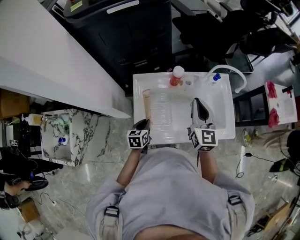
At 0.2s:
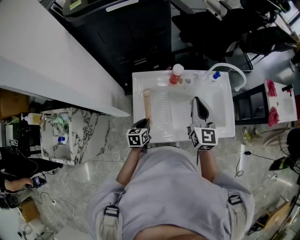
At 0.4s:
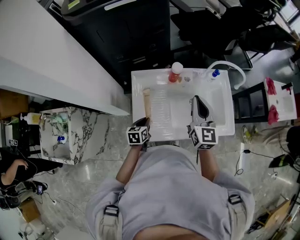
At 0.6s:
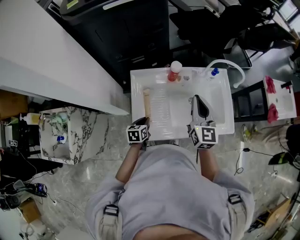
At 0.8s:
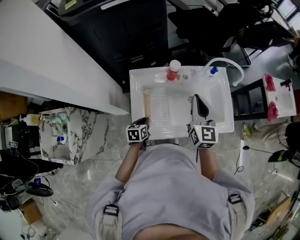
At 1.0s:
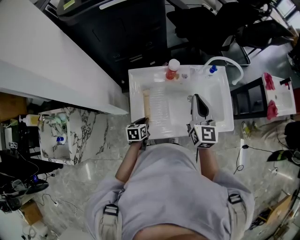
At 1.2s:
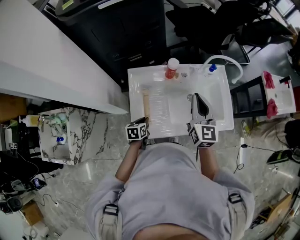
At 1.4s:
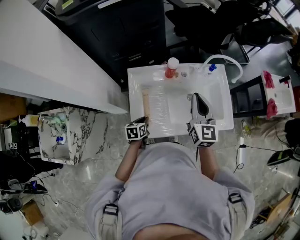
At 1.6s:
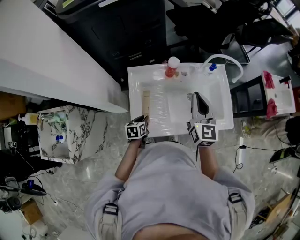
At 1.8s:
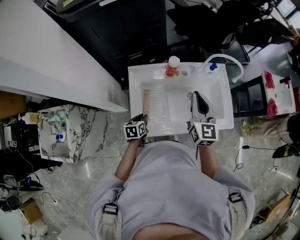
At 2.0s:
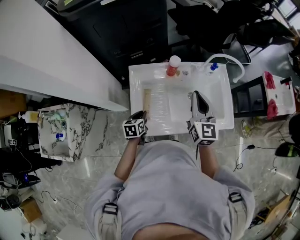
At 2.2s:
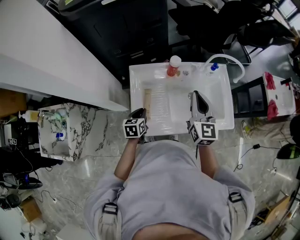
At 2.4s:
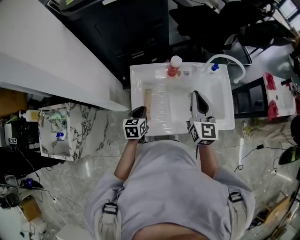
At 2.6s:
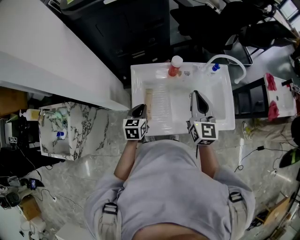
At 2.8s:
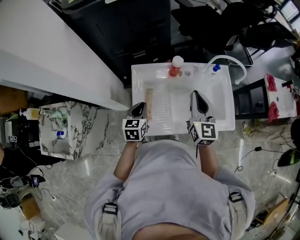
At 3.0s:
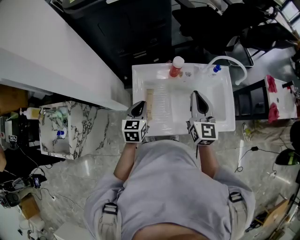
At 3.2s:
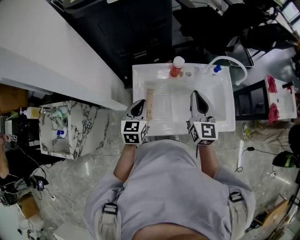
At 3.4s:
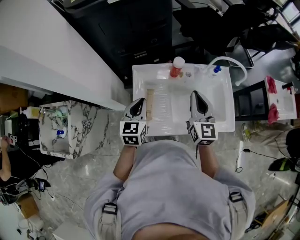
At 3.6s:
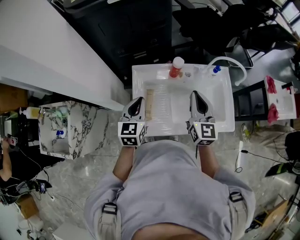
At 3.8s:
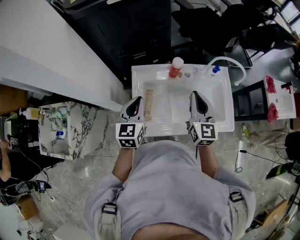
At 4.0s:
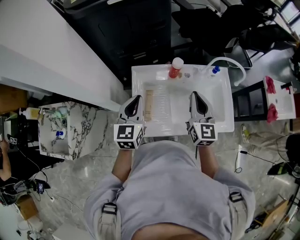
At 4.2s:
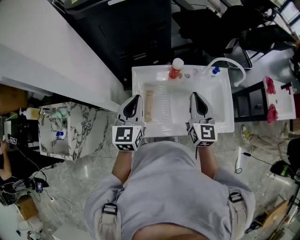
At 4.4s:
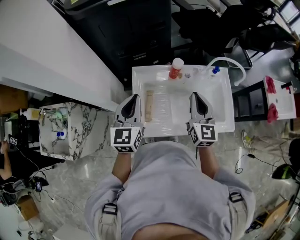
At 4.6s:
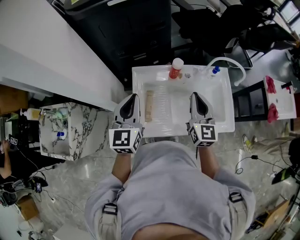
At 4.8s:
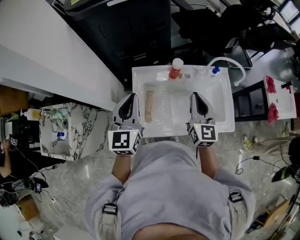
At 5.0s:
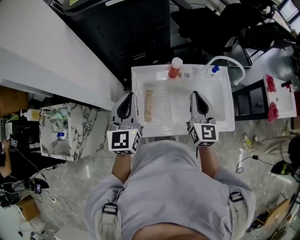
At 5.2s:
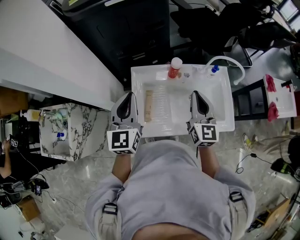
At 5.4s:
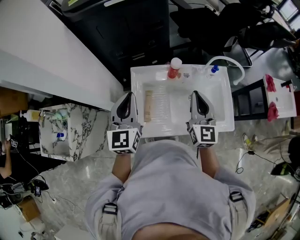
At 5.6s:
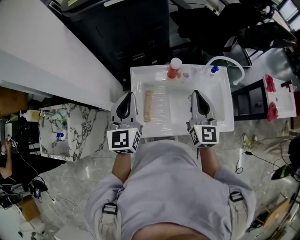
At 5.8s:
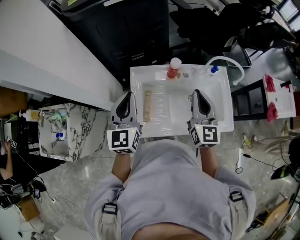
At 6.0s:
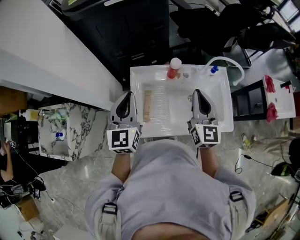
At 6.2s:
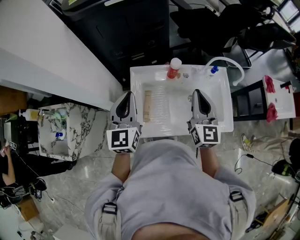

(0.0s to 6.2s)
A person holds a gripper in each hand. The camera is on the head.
0.0s - 1.6s: The left gripper shifts by roughly 5 cm.
1.6s - 3.2s: The left gripper is displaced upward by some 20 cm, and swivels about 30 degrees.
3.2s - 4.6s: The left gripper heads upward, covering roughly 15 cm.
4.6s - 6.2s: The grippers stay close to where they were, moving slightly.

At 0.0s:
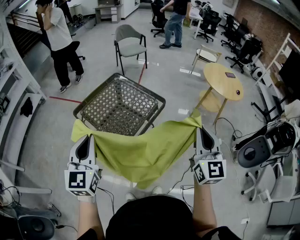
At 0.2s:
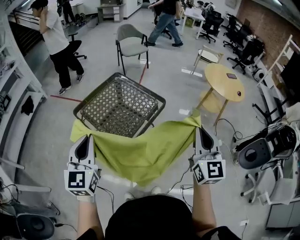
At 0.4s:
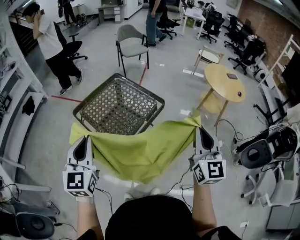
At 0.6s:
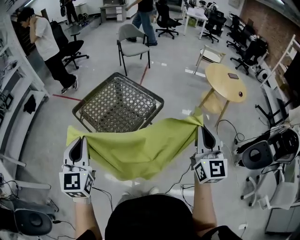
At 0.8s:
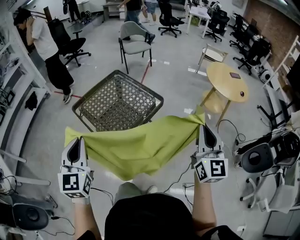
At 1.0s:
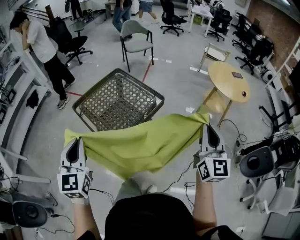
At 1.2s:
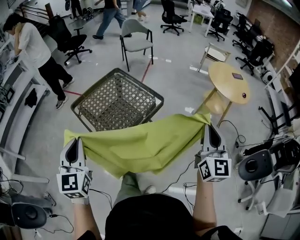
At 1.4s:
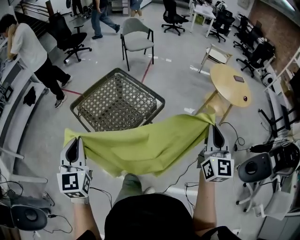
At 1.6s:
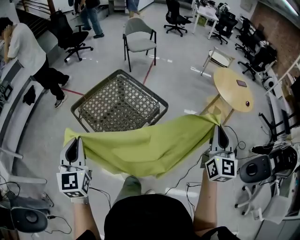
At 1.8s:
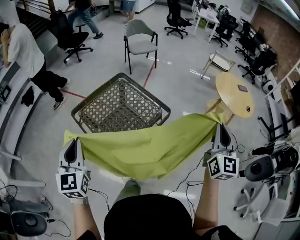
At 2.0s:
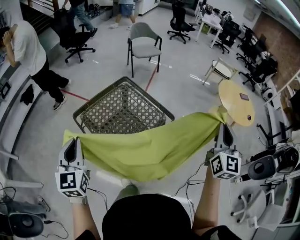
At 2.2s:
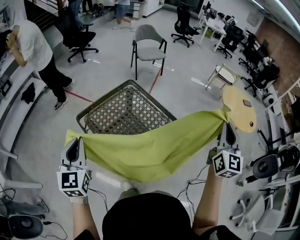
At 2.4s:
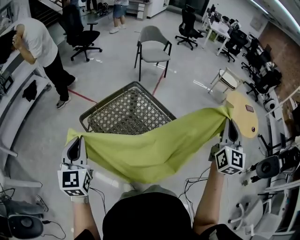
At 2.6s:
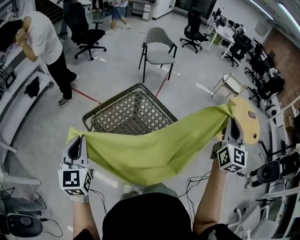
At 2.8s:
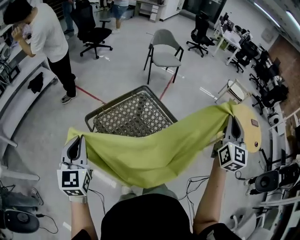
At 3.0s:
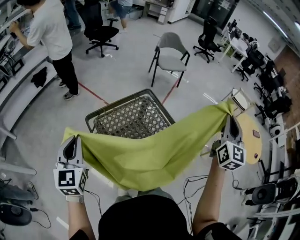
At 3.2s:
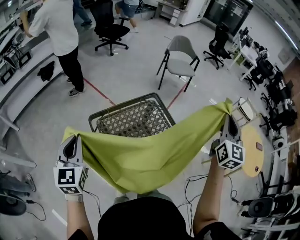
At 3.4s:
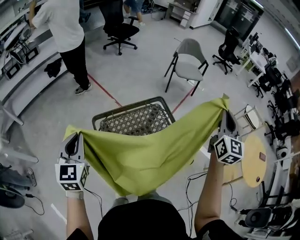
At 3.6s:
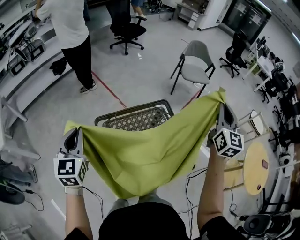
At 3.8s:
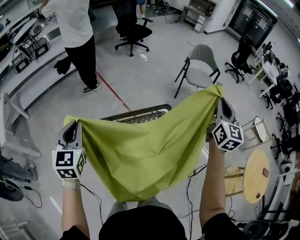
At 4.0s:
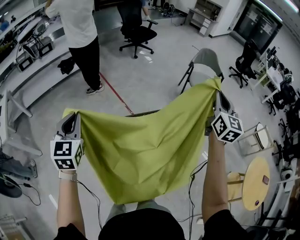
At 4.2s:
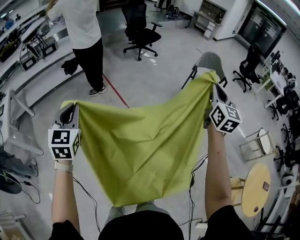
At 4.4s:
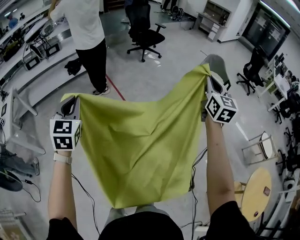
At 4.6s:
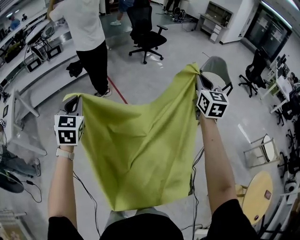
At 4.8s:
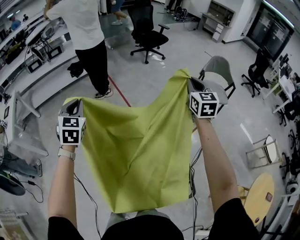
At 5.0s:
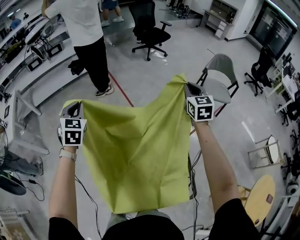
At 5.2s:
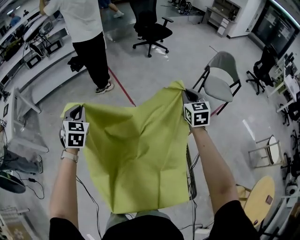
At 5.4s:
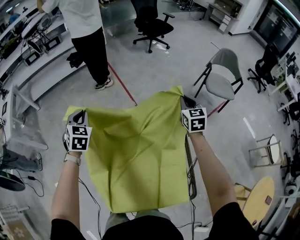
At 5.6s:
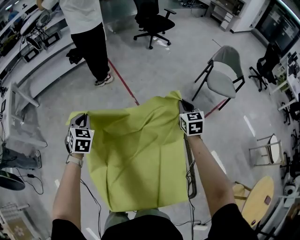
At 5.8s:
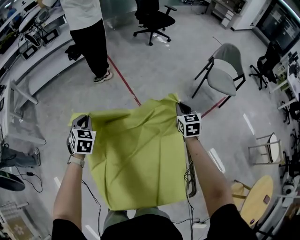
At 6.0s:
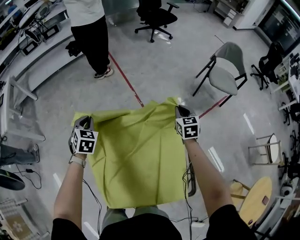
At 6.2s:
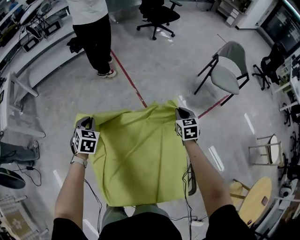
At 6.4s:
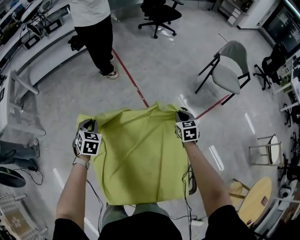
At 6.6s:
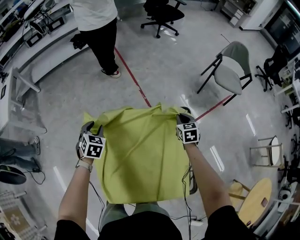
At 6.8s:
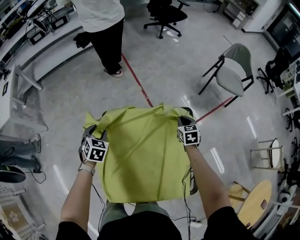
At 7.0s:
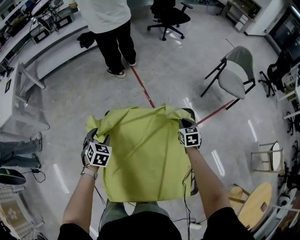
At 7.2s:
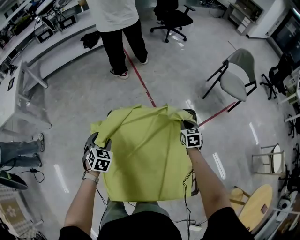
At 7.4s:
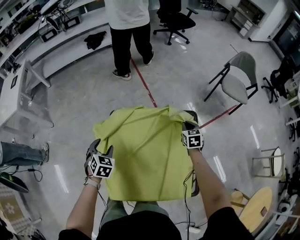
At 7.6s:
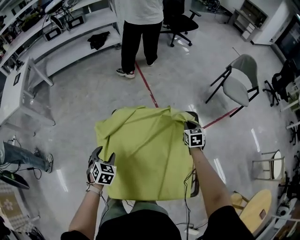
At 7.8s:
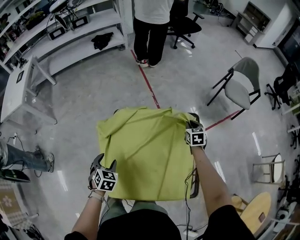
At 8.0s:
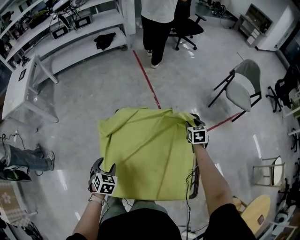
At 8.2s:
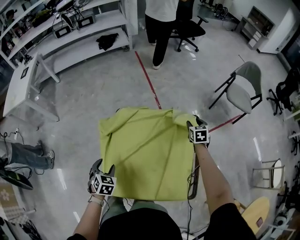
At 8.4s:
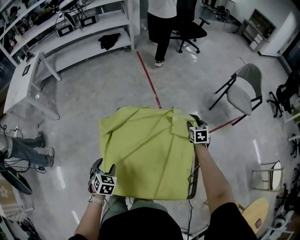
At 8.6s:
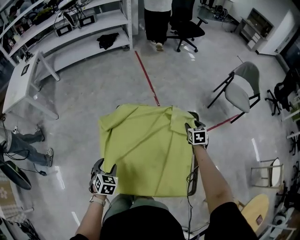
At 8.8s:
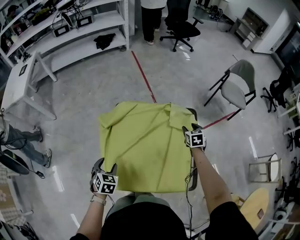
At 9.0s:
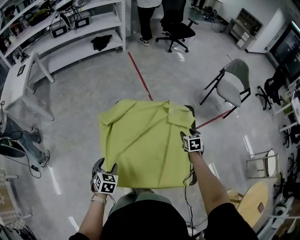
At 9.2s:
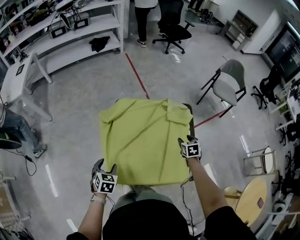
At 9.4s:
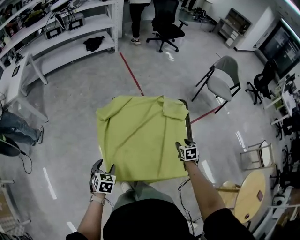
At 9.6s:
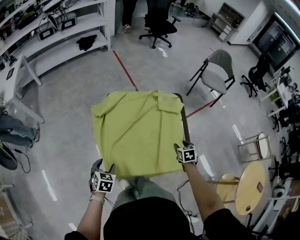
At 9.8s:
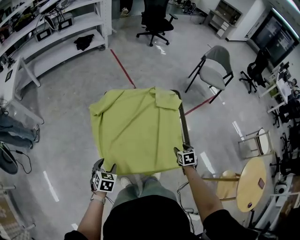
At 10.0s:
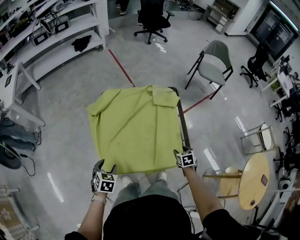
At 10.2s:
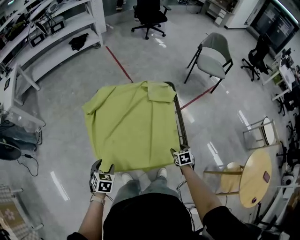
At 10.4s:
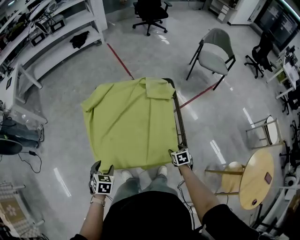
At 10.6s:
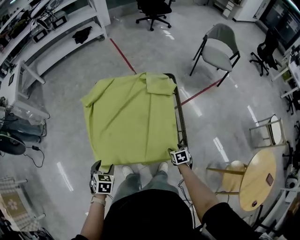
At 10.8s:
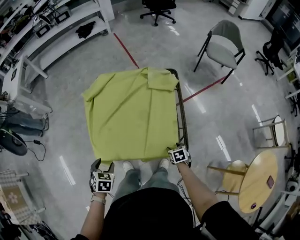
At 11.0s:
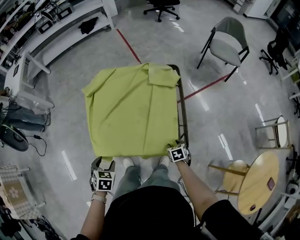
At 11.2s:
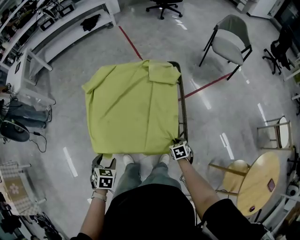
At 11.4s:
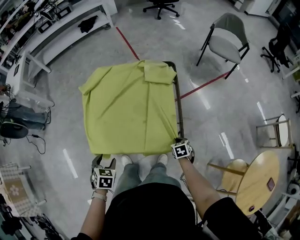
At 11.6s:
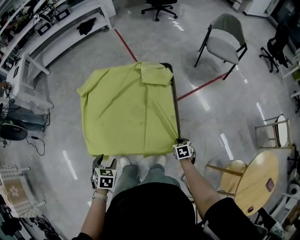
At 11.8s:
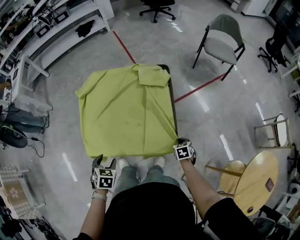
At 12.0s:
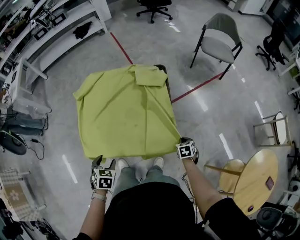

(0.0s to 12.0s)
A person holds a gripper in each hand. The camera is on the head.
0.0s - 1.6s: The right gripper goes approximately 15 cm to the right and forward. Meanwhile the left gripper shifts by approximately 5 cm.
1.6s - 3.0s: The right gripper heads forward and to the left, covering about 35 cm. Meanwhile the left gripper shifts some 25 cm to the left and forward.
3.0s - 4.4s: The right gripper changes place by about 50 cm, and changes its angle by roughly 30 degrees, while the left gripper ends up approximately 25 cm from where it was, and turns by some 20 degrees.
4.4s - 6.0s: The grippers both shift downward by roughly 30 cm. The right gripper points its fingers roughly 40 degrees further downward. Meanwhile the left gripper rotates approximately 30 degrees.
6.0s - 7.6s: The right gripper moves downward and backward, about 10 cm. Meanwhile the left gripper travels backward by roughly 25 cm, and opens.
7.6s - 9.0s: The two grippers go about 15 cm backward. The right gripper opens its fingers.
9.0s - 10.4s: The left gripper heads backward and to the right, covering roughly 15 cm, while the right gripper goes some 30 cm backward and downward.
10.4s - 12.0s: The left gripper travels to the right and backward by about 15 cm. Meanwhile the right gripper shifts roughly 15 cm to the right, and closes its fingers.

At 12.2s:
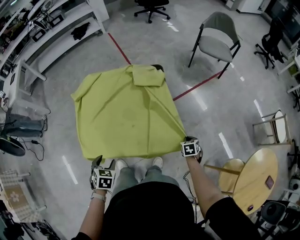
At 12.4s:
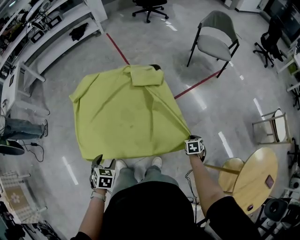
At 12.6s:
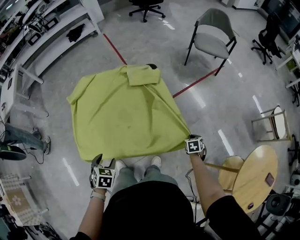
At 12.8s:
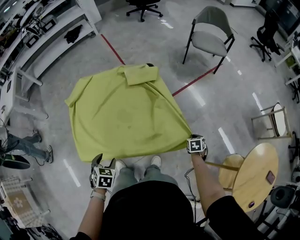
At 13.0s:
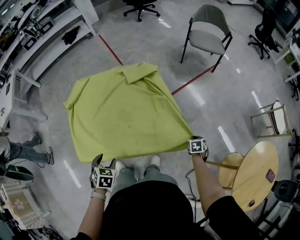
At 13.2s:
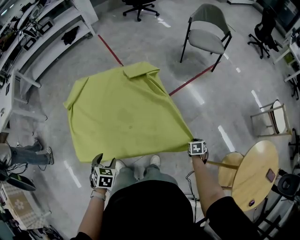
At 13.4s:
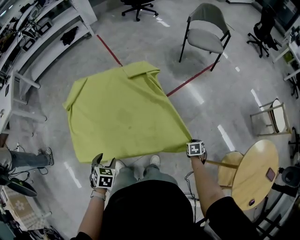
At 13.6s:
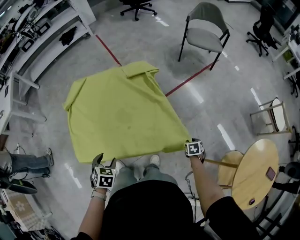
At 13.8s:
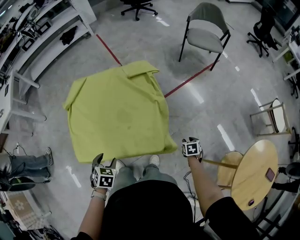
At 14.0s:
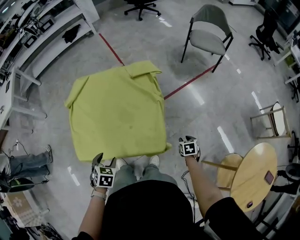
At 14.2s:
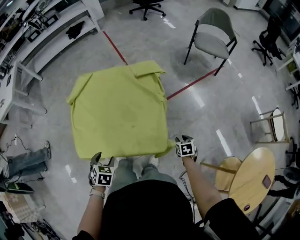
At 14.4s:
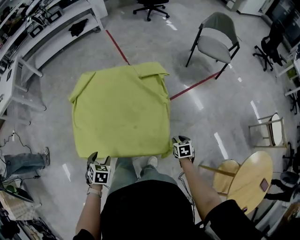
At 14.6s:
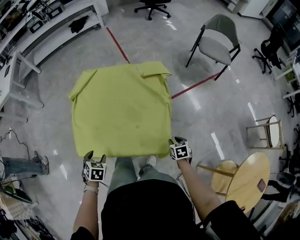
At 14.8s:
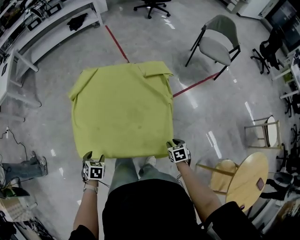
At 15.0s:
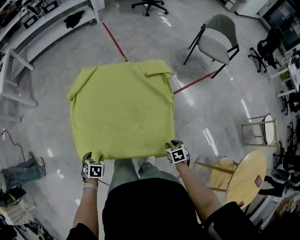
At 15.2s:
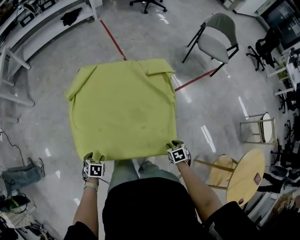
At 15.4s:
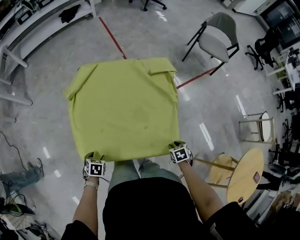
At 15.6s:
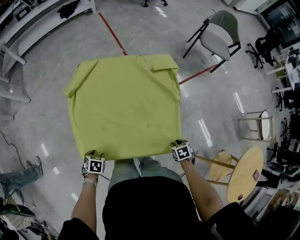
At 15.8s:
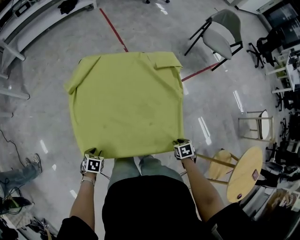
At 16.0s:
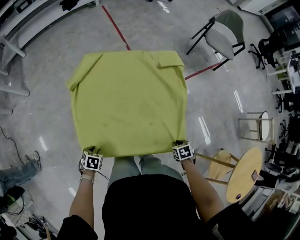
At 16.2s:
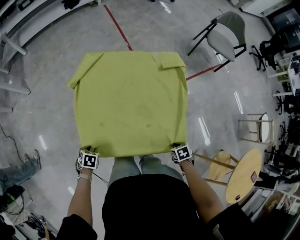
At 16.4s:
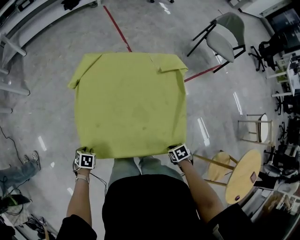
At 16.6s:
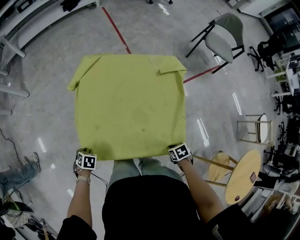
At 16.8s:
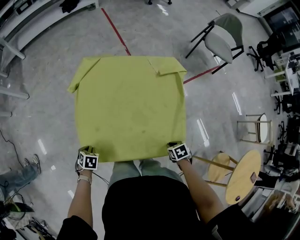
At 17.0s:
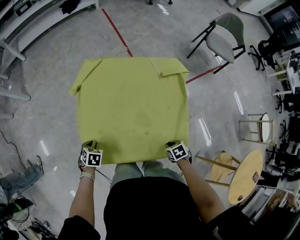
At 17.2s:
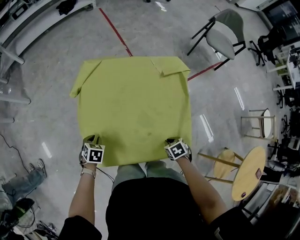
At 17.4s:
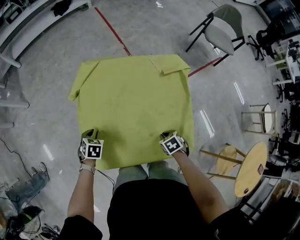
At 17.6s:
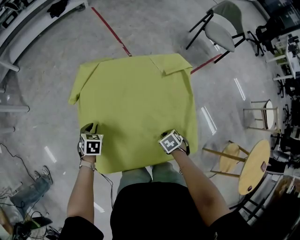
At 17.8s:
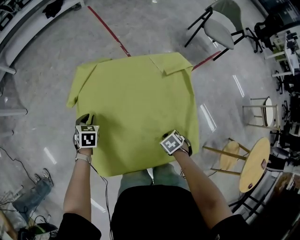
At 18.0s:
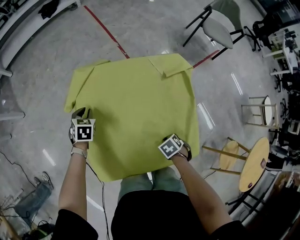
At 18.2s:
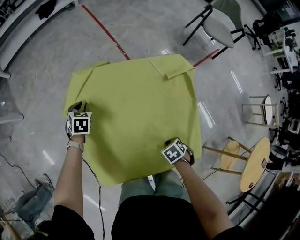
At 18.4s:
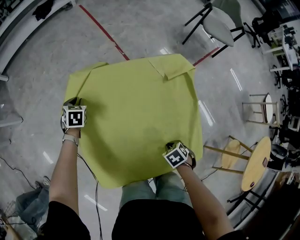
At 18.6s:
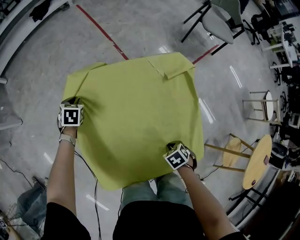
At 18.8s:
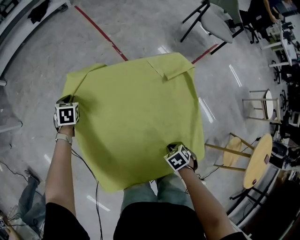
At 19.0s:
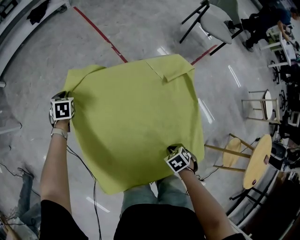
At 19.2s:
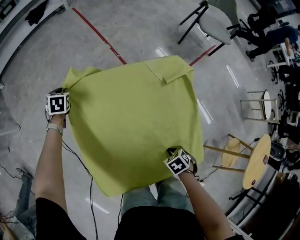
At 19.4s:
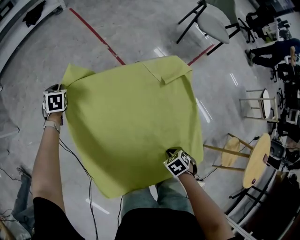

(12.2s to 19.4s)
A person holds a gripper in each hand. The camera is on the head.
12.2s - 13.6s: The two grippers go about 10 cm to the right. The right gripper opens.
13.6s - 15.0s: The left gripper moves to the left and downward, approximately 20 cm. Meanwhile the right gripper travels to the left by approximately 20 cm.
15.0s - 16.6s: The right gripper ends up some 5 cm from where it was, changes its angle by about 20 degrees, and closes up. Meanwhile the left gripper moves roughly 15 cm, and closes.
16.6s - 18.0s: The left gripper changes place by some 35 cm, and changes its angle by about 30 degrees. Meanwhile the right gripper ends up roughly 15 cm from where it was.
18.0s - 19.4s: The left gripper ends up roughly 25 cm from where it was.
